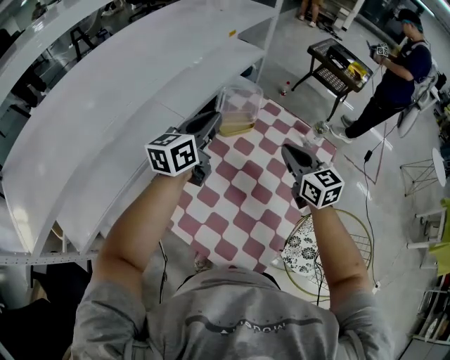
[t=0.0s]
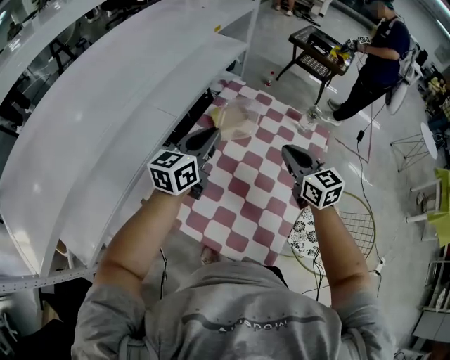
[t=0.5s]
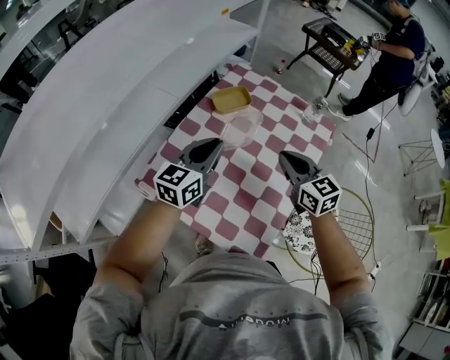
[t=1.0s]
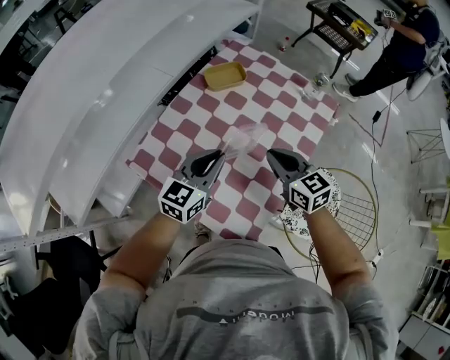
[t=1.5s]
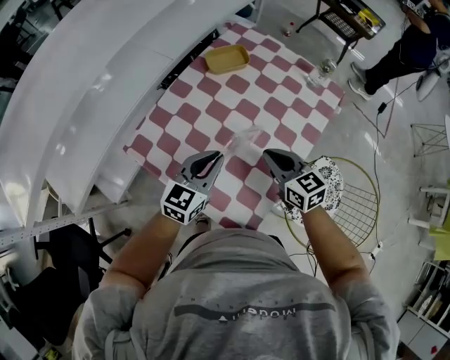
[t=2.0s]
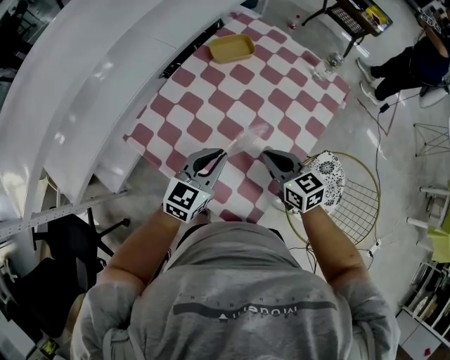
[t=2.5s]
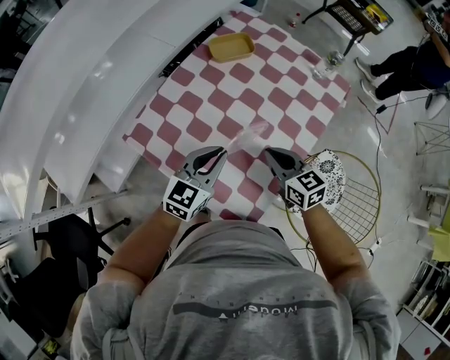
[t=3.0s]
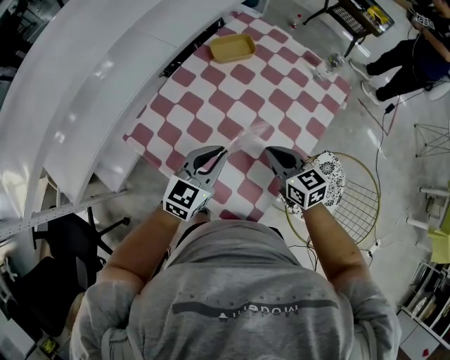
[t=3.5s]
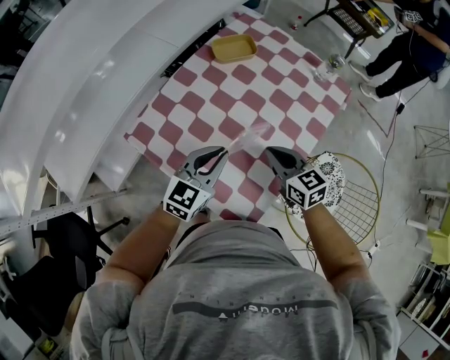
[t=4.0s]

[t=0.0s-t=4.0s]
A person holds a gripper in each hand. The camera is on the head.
t=0.0s to t=2.0s: The grippers both shift backward and downward by roughly 25 cm. The left gripper turns by roughly 20 degrees.
t=2.0s to t=4.0s: The grippers stay close to where they were, moving slightly.

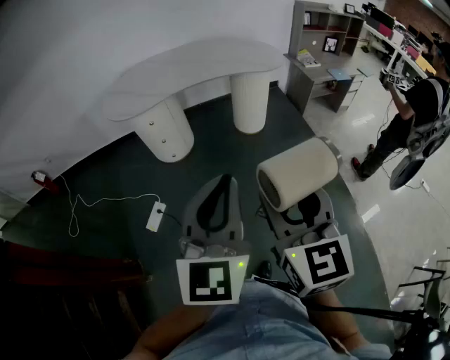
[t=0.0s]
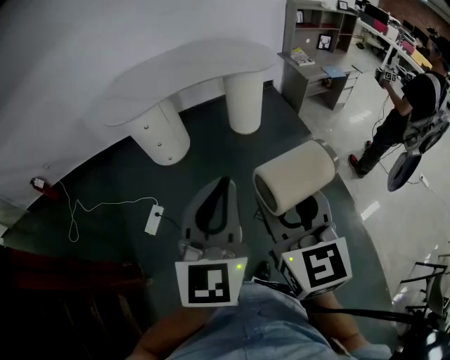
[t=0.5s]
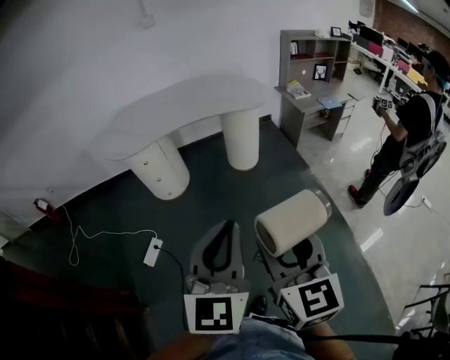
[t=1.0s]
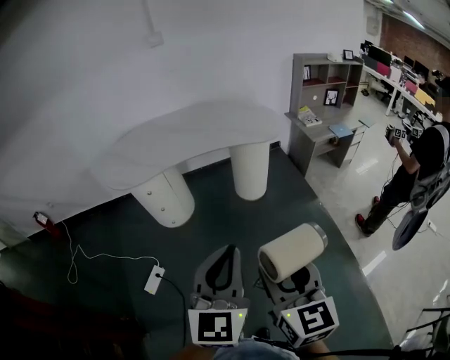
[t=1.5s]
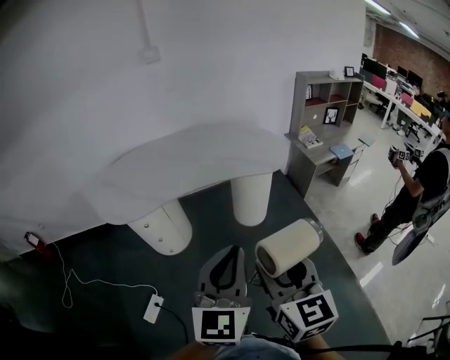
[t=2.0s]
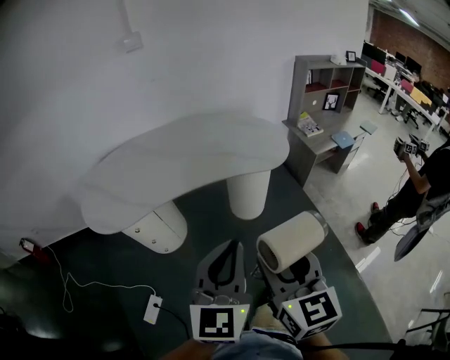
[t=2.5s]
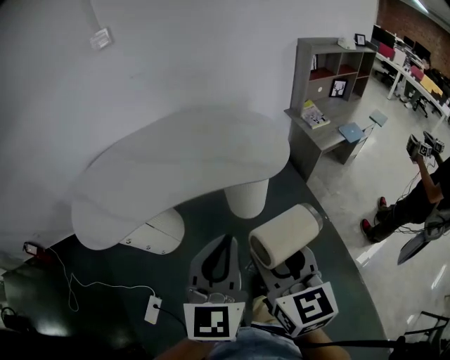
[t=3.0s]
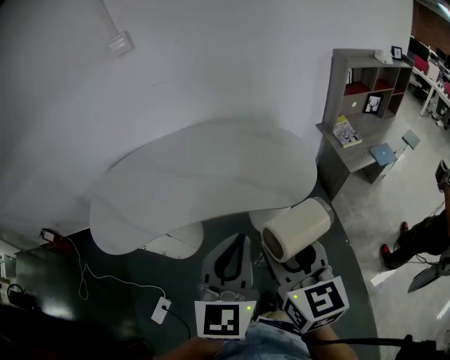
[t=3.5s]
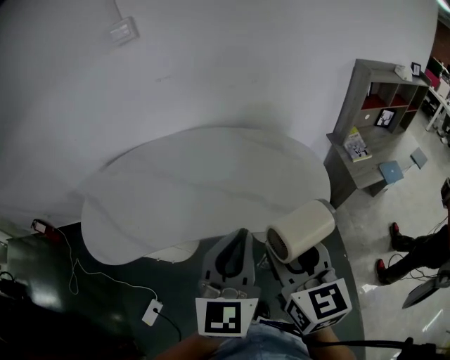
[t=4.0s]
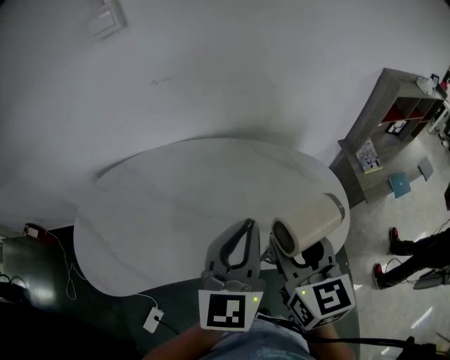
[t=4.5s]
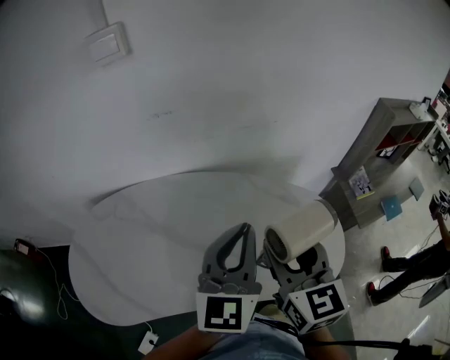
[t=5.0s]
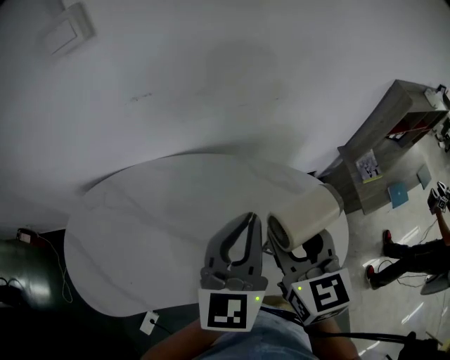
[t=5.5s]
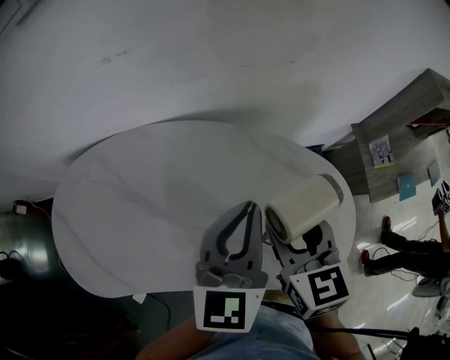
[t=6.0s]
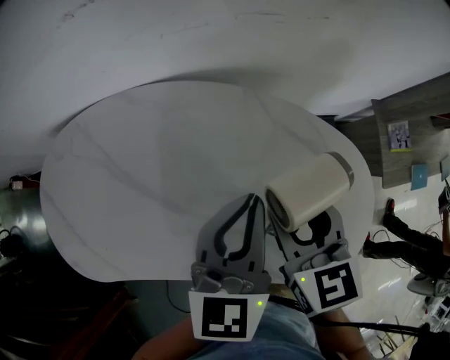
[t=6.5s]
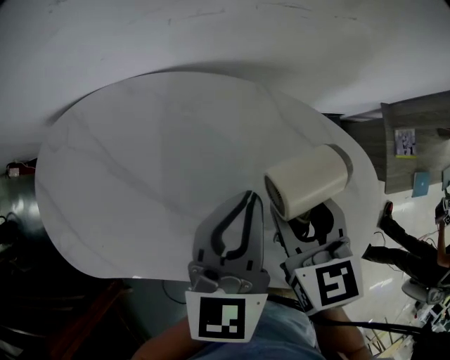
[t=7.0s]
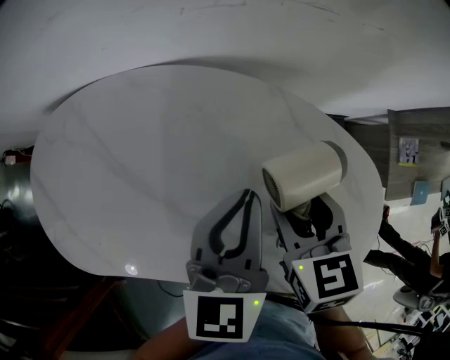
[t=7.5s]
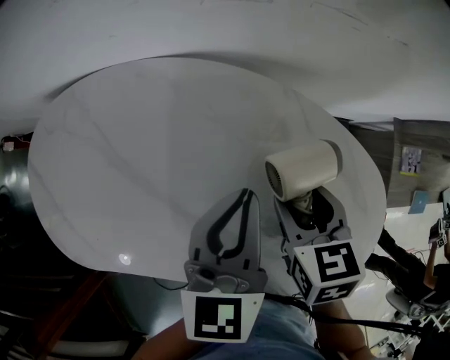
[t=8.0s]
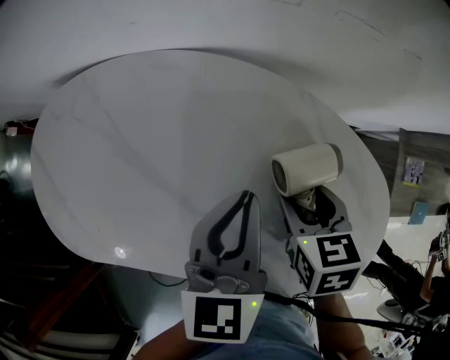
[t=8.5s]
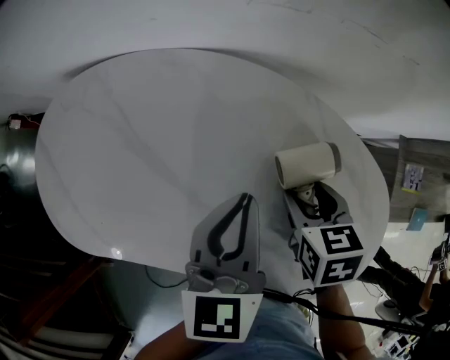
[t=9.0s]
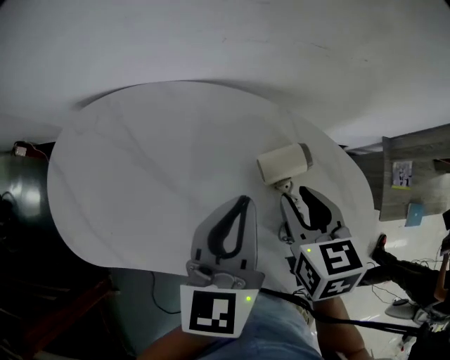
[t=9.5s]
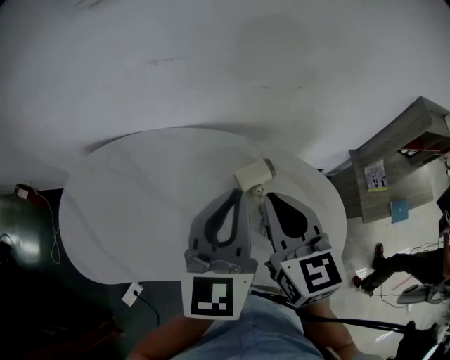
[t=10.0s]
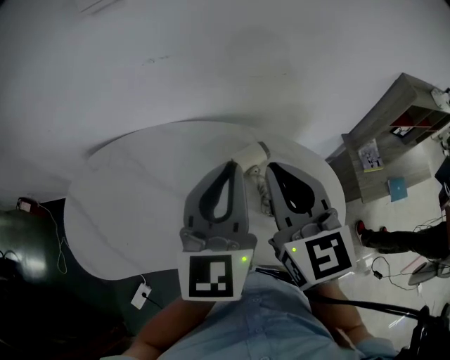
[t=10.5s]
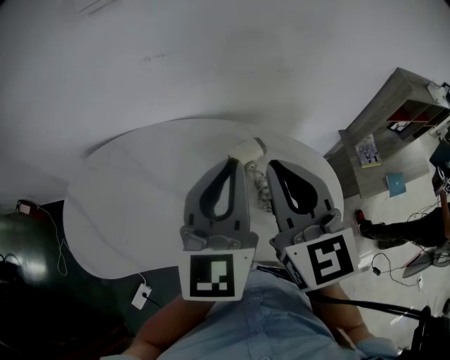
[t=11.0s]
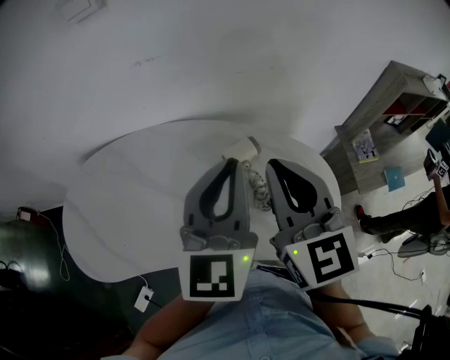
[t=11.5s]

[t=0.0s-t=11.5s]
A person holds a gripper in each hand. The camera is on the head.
t=0.0s to t=2.0s: The two grippers go some 25 cm forward.
t=2.0s to t=4.0s: The pair of grippers is taken forward, approximately 40 cm.
t=4.0s to t=6.0s: Both grippers move forward, about 30 cm.
t=6.0s to t=7.5s: The right gripper goes roughly 10 cm downward and forward. Meanwhile the left gripper moves downward, approximately 10 cm.
t=7.5s to t=9.5s: The left gripper is displaced upward by roughly 5 cm.
t=9.5s to t=11.5s: The left gripper shifts approximately 15 cm upward and backward, and turns by about 30 degrees. Meanwhile the right gripper heads upward, covering approximately 25 cm, angles its fingers upward, by roughly 40 degrees, and closes.

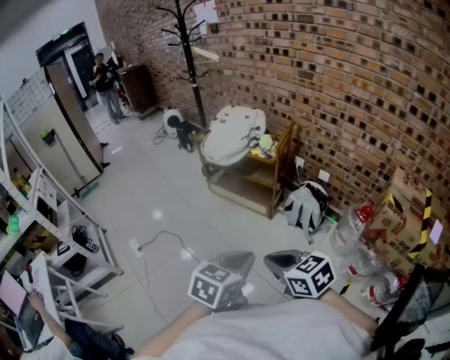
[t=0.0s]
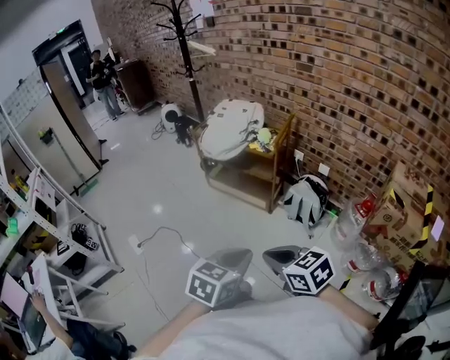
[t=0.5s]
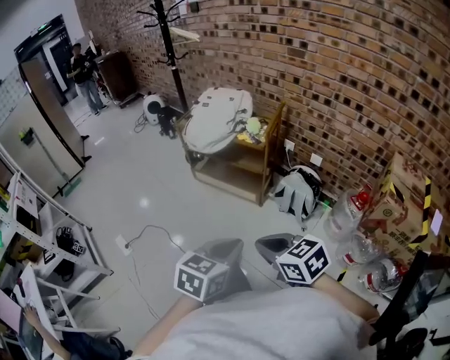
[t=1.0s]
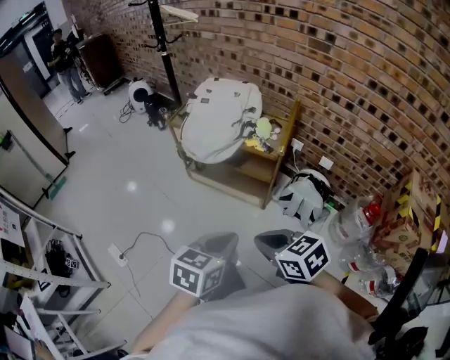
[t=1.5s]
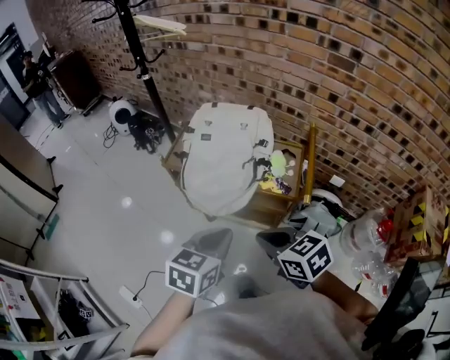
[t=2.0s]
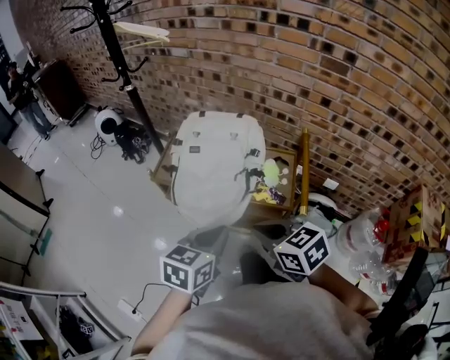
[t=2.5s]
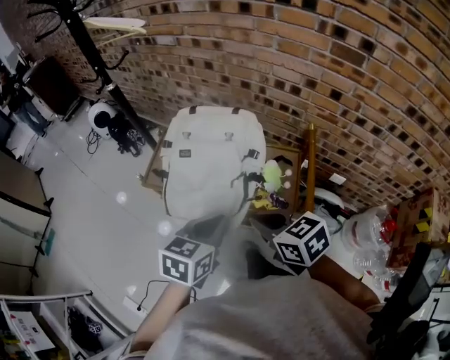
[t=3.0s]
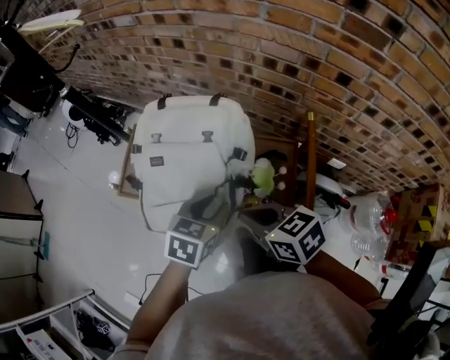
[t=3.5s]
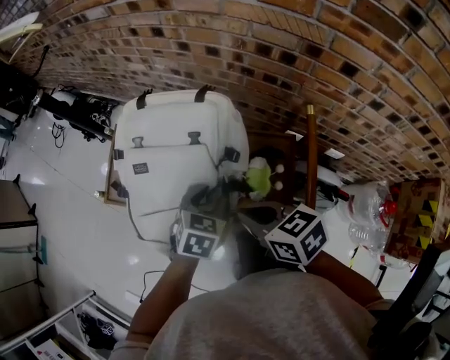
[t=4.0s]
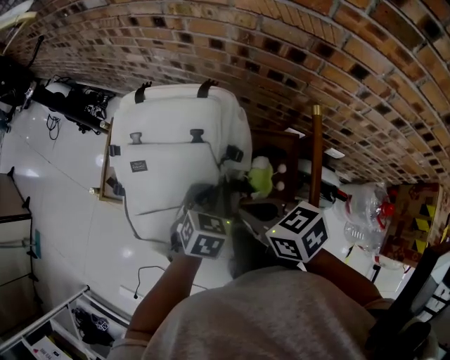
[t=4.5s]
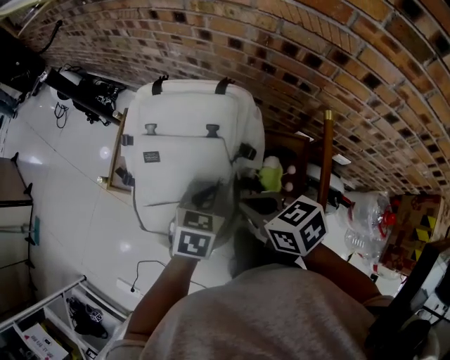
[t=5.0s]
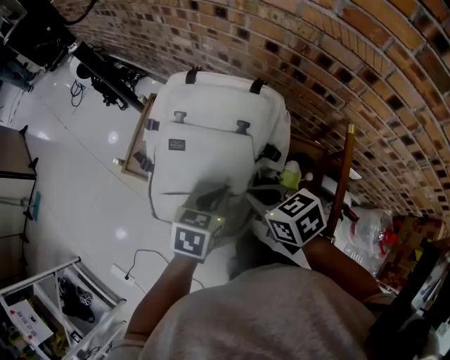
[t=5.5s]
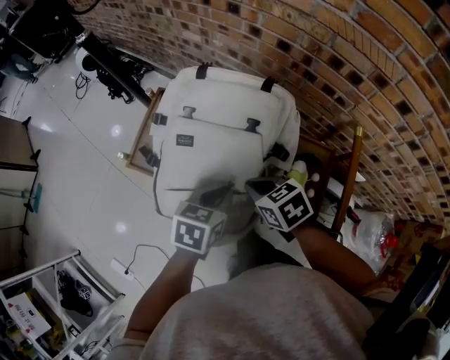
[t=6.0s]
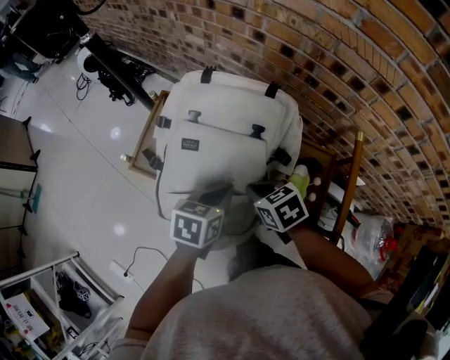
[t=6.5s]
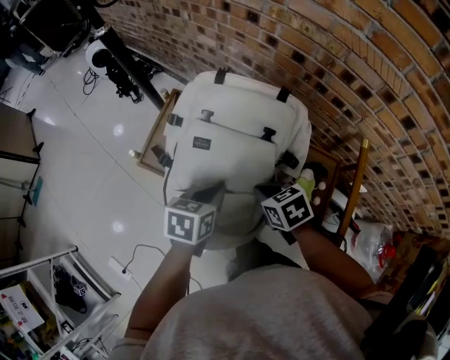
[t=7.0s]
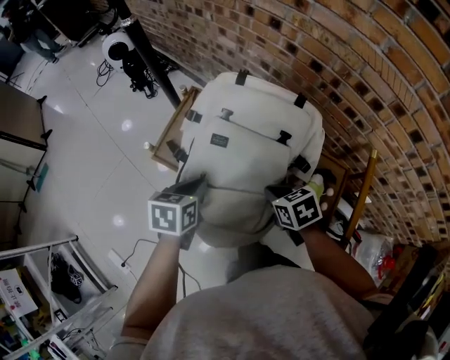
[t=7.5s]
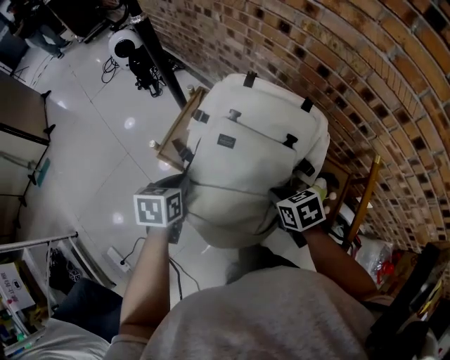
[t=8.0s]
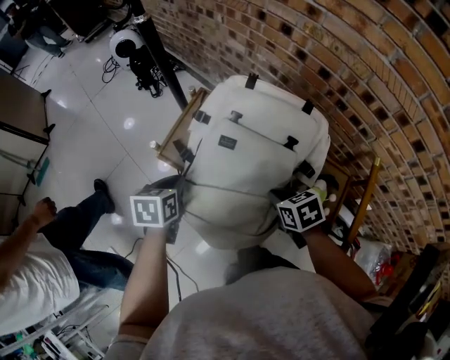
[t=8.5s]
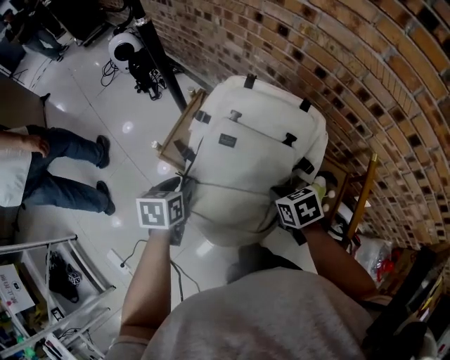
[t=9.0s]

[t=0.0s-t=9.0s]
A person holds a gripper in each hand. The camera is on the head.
t=0.0s to t=2.0s: The pair of grippers is taken forward, about 50 cm.
t=2.0s to t=4.5s: The grippers both shift forward and downward by roughly 35 cm. The left gripper turns by some 30 degrees, and opens and closes again.
t=4.5s to t=7.0s: The right gripper is displaced downward, to the left and forward by approximately 10 cm, and rotates roughly 20 degrees. Meanwhile the left gripper travels to the left by roughly 10 cm, and turns by some 40 degrees.
t=7.0s to t=9.0s: The left gripper heads to the left, covering some 15 cm, and opens up.

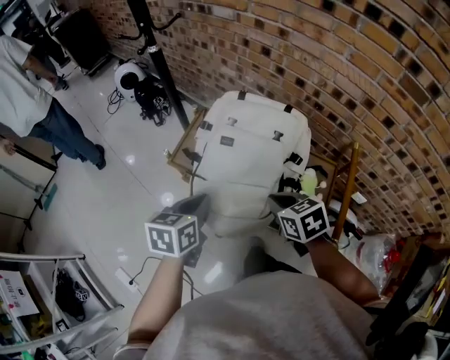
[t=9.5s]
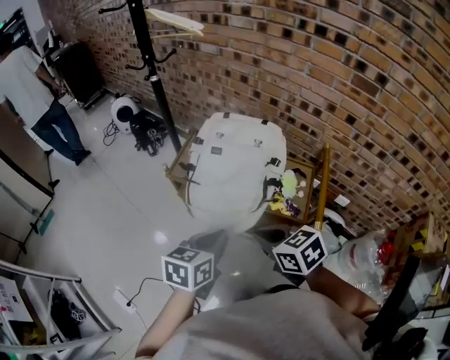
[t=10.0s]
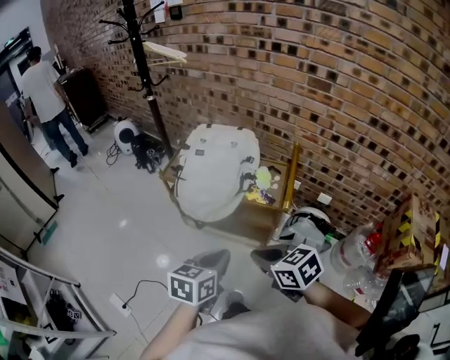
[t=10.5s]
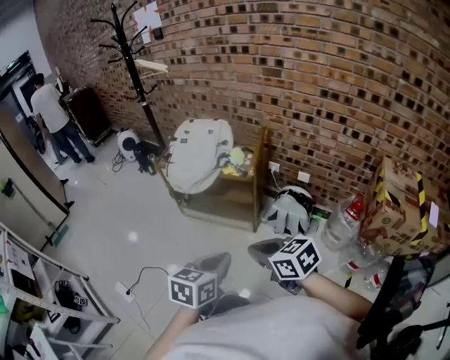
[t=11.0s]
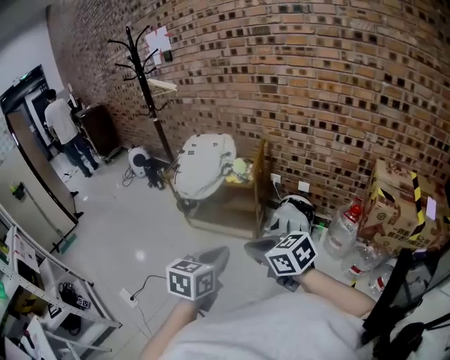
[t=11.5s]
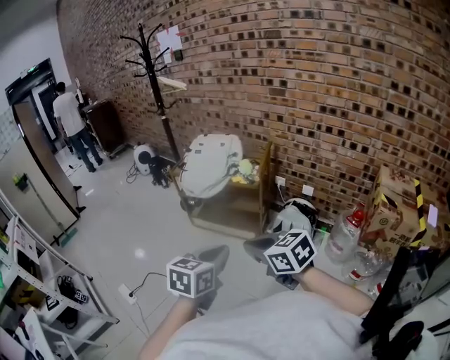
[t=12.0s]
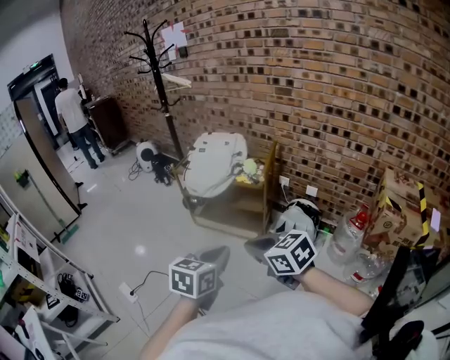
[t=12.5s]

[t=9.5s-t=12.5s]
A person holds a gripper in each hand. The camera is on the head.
t=9.5s to t=11.0s: The pair of grippers is taken backward, roughly 60 cm.
t=11.0s to t=12.5s: The right gripper shifts by roughly 5 cm. Meanwhile the left gripper ends up some 5 cm from where it was.
